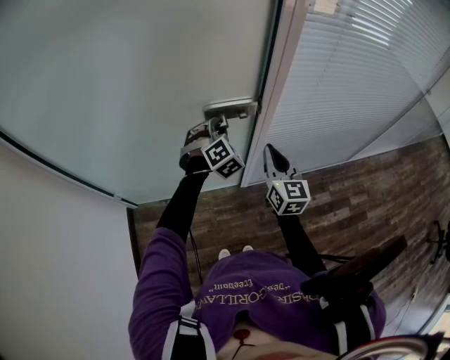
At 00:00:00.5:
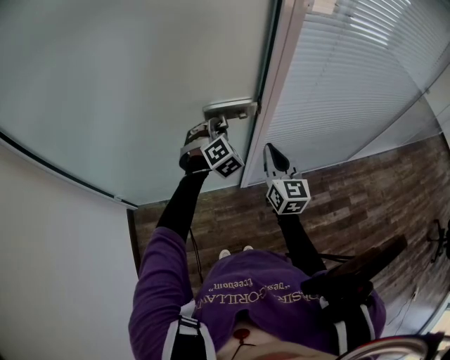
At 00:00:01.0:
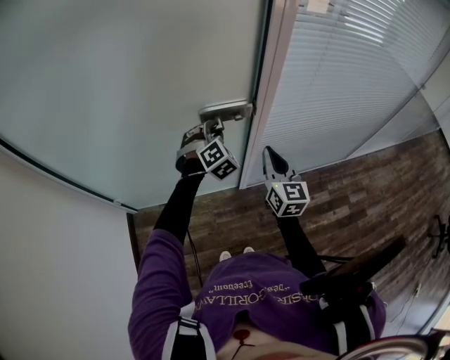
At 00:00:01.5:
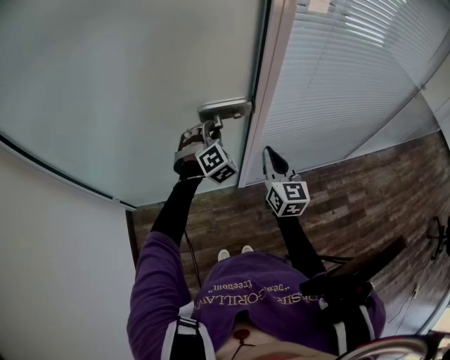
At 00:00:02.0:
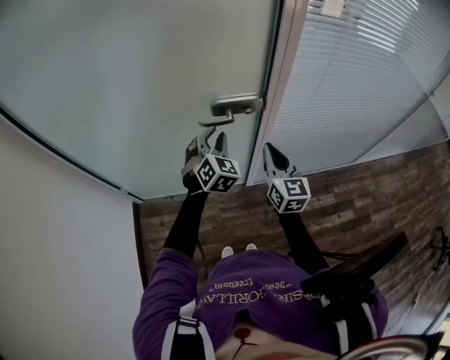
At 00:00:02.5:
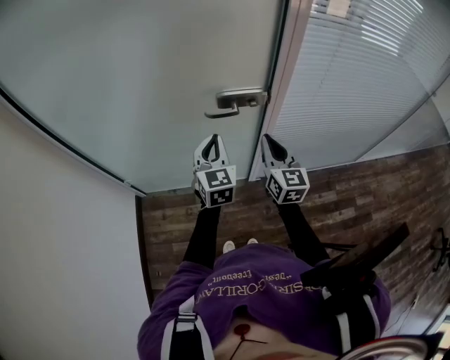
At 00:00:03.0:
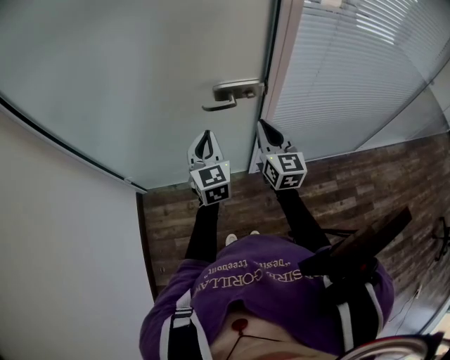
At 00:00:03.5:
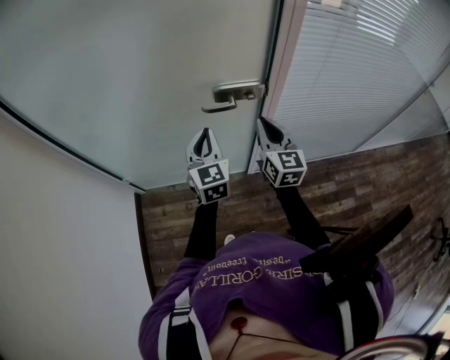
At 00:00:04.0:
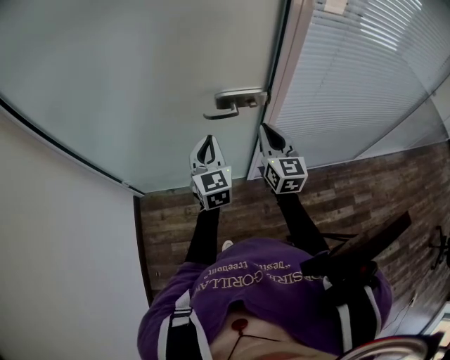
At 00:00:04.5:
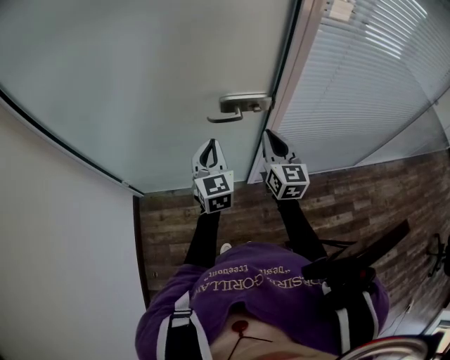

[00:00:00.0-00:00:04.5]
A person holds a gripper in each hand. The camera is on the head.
00:00:00.0 to 00:00:02.0: The left gripper goes some 5 cm backward, and changes its angle by approximately 20 degrees.
00:00:02.0 to 00:00:04.5: The left gripper travels to the left by some 5 cm, rotates about 30 degrees, and closes up.

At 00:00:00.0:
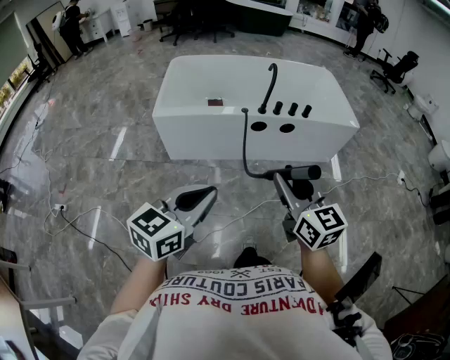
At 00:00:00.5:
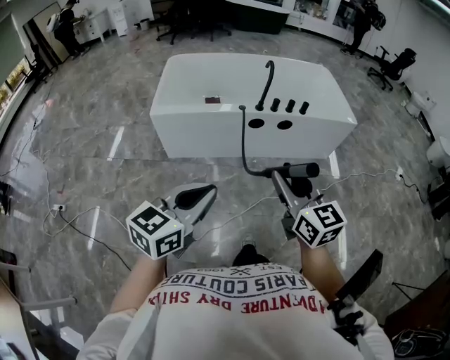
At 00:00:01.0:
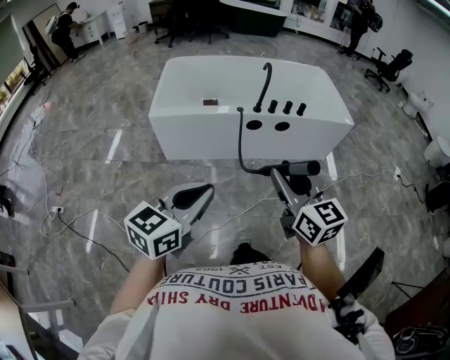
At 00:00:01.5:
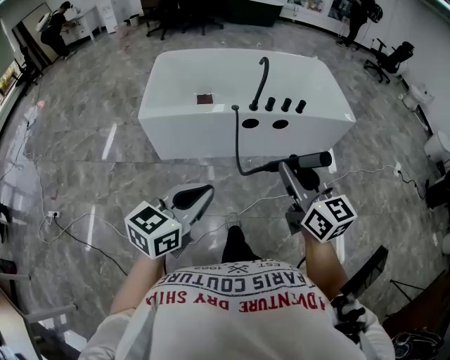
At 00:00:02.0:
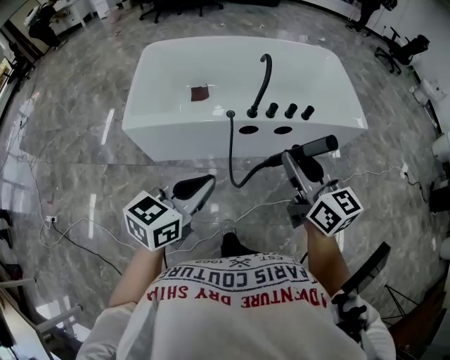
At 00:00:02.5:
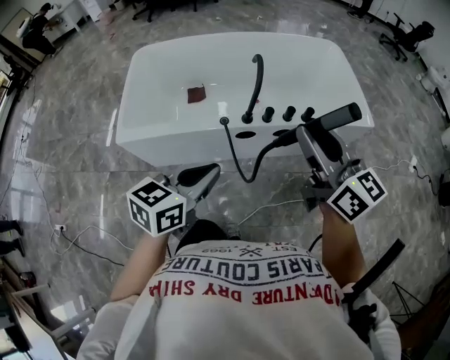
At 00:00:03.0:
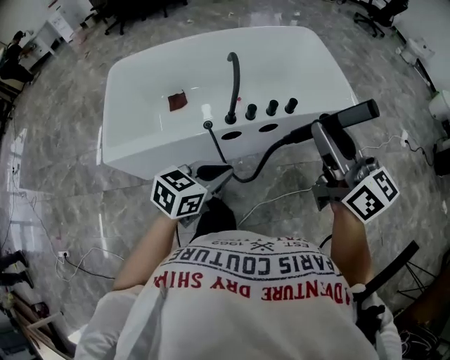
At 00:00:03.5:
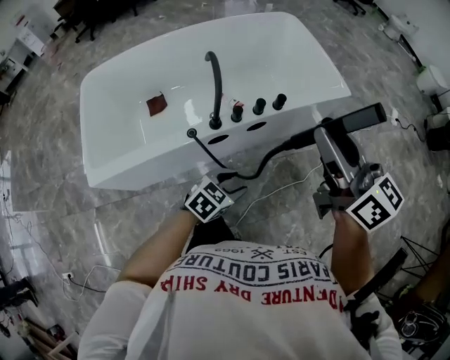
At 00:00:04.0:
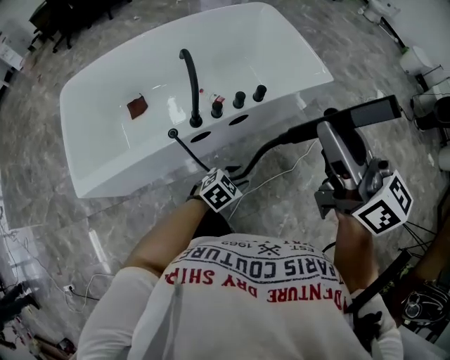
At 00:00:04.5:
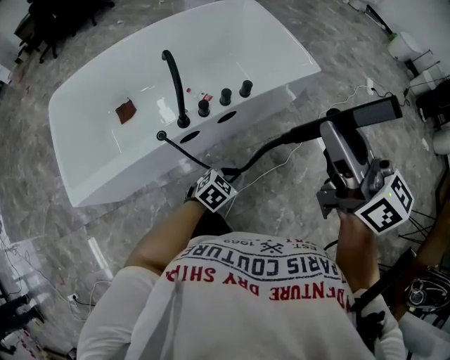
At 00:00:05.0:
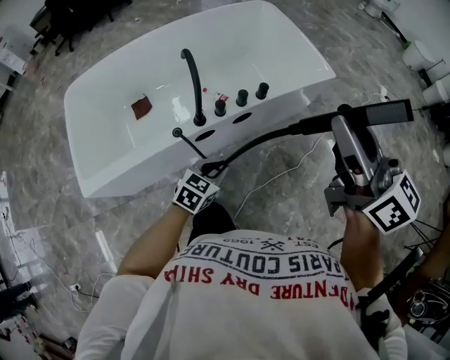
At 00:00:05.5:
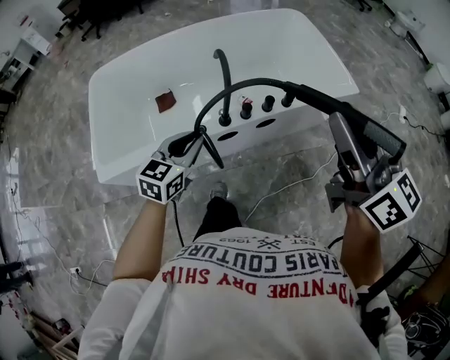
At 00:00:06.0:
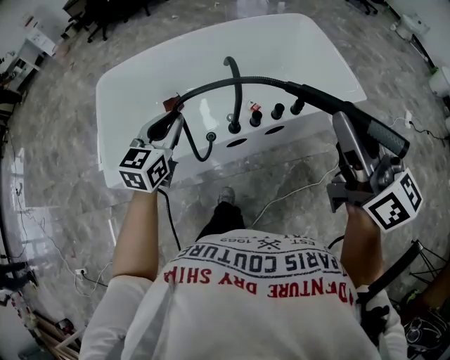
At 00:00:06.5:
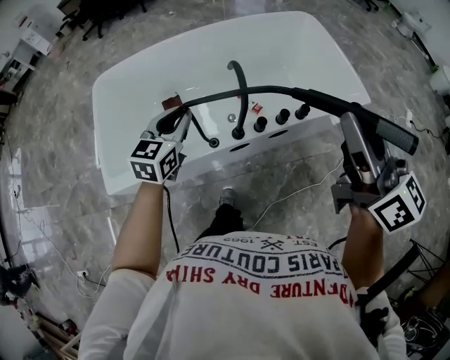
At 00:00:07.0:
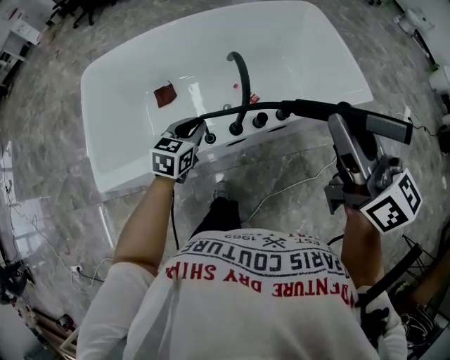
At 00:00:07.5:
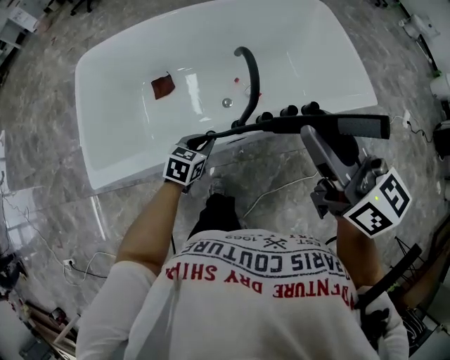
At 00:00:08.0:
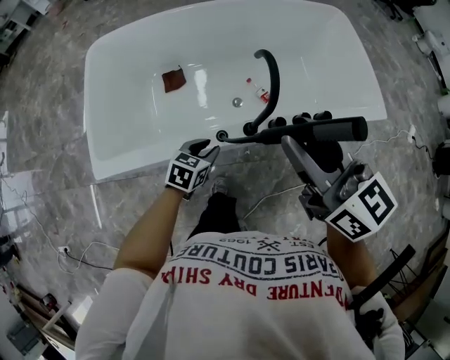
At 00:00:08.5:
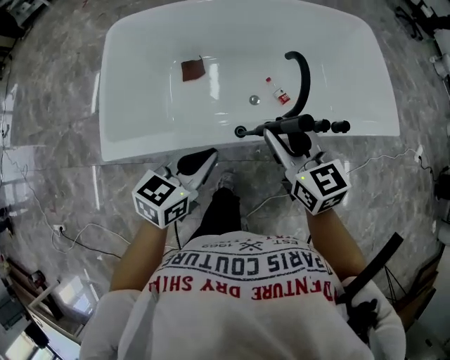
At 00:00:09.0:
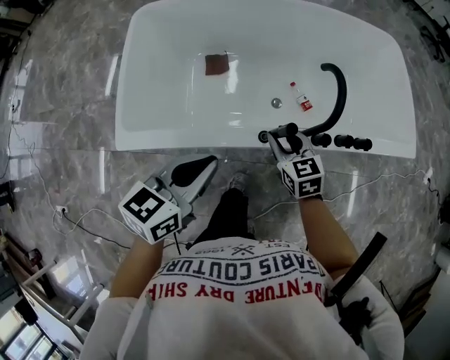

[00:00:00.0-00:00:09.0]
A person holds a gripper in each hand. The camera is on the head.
00:00:00.0 to 00:00:02.0: Both grippers move forward, approximately 25 cm.
00:00:02.0 to 00:00:04.5: The right gripper moves some 20 cm, and turns by approximately 20 degrees. The left gripper is displaced downward by some 30 cm, changes its angle by approximately 50 degrees, and opens, then closes once more.
00:00:04.5 to 00:00:07.0: The right gripper ends up about 20 cm from where it was. Meanwhile the left gripper moves about 35 cm, and changes its angle by approximately 40 degrees.
00:00:07.0 to 00:00:09.0: The left gripper heads backward, to the left and upward, covering about 20 cm, and turns by about 20 degrees, while the right gripper travels downward and to the left by some 40 cm, and tips its fingers downward by about 30 degrees.

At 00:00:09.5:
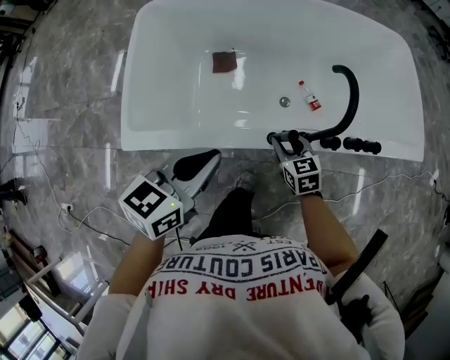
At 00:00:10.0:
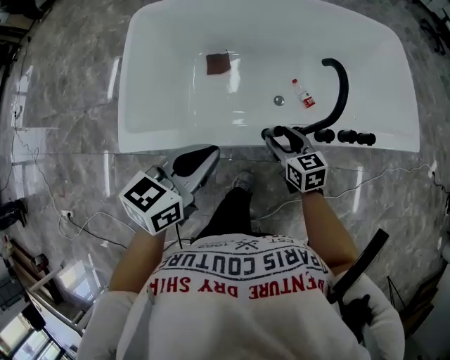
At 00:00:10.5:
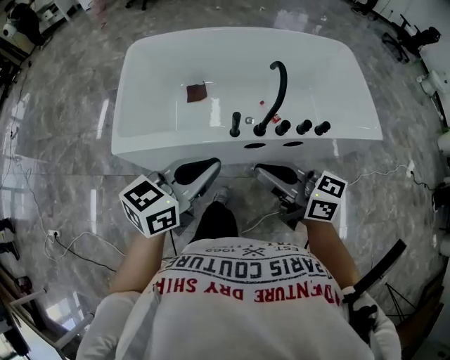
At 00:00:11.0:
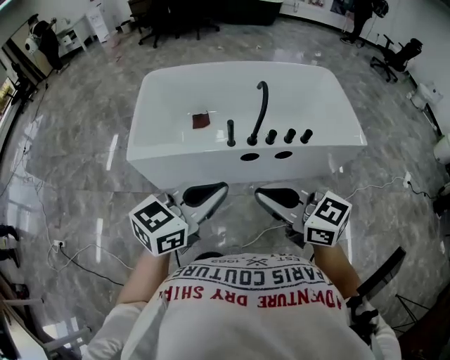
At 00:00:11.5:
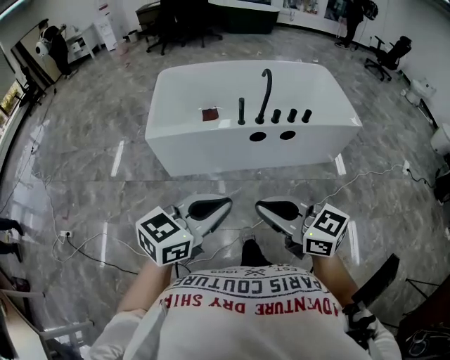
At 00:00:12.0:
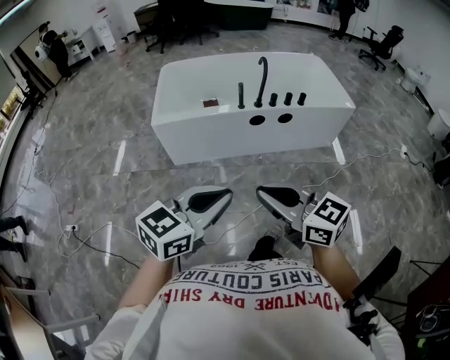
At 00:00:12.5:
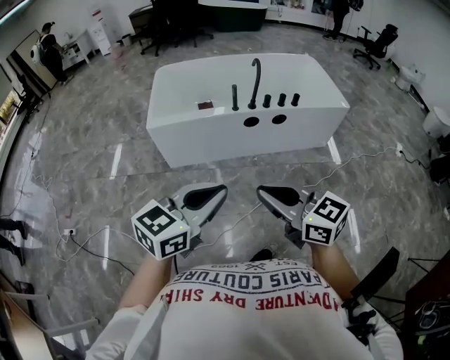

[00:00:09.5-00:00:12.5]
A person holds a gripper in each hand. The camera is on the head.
00:00:09.5 to 00:00:11.0: The right gripper is displaced upward and backward by some 50 cm, angles its fingers upward, by roughly 30 degrees, and closes up. The left gripper goes some 35 cm backward, upward and to the right, and swivels roughly 20 degrees.
00:00:11.0 to 00:00:12.5: Both grippers move backward, some 30 cm.

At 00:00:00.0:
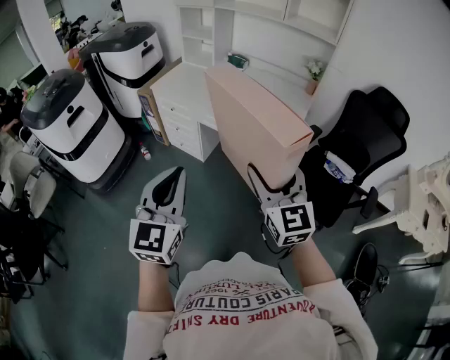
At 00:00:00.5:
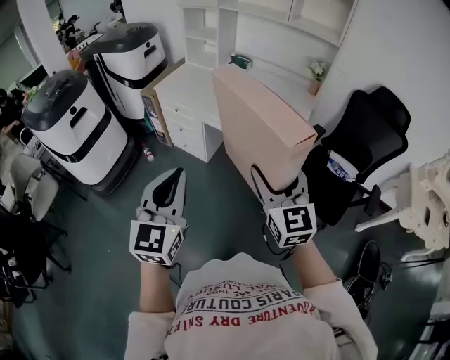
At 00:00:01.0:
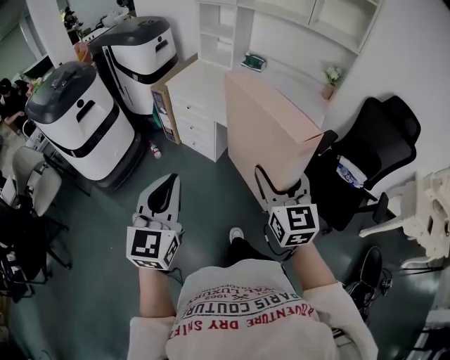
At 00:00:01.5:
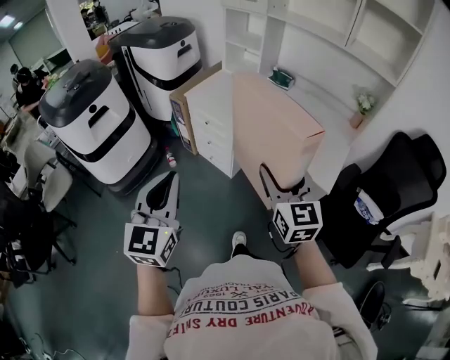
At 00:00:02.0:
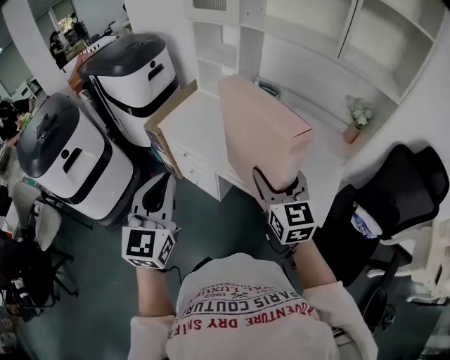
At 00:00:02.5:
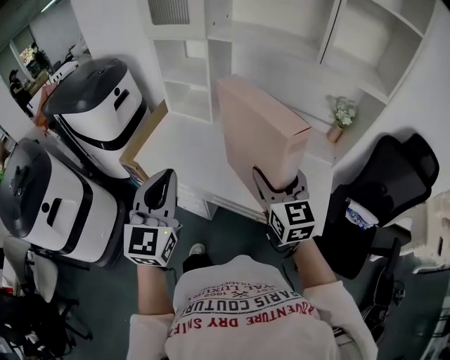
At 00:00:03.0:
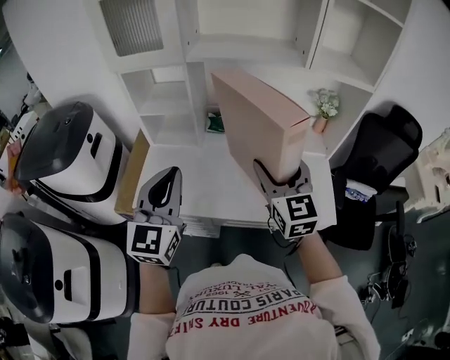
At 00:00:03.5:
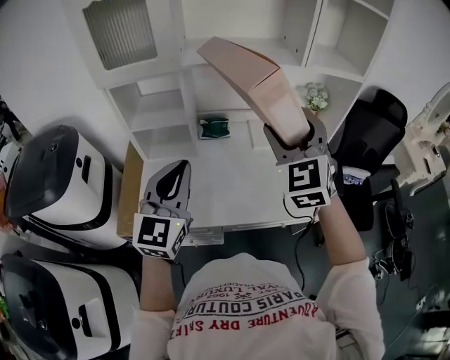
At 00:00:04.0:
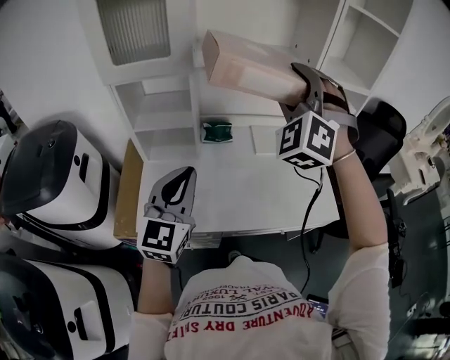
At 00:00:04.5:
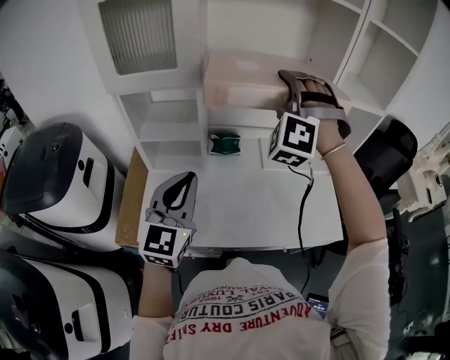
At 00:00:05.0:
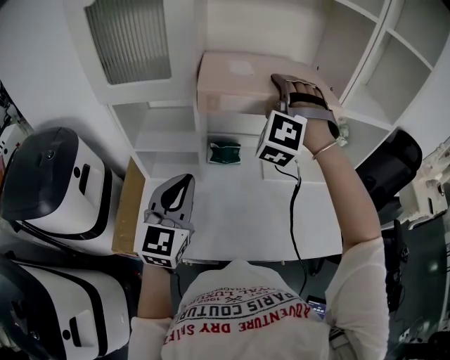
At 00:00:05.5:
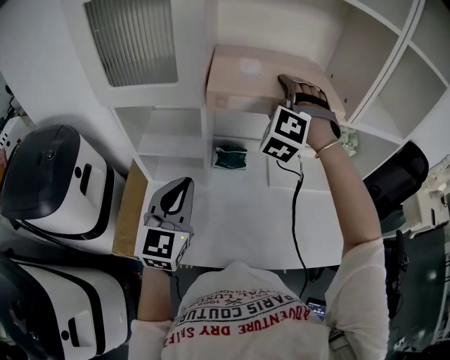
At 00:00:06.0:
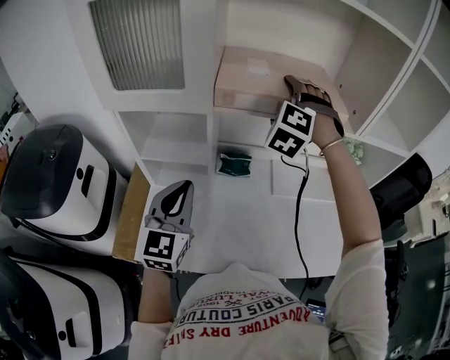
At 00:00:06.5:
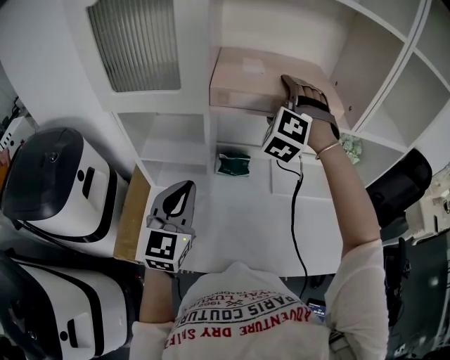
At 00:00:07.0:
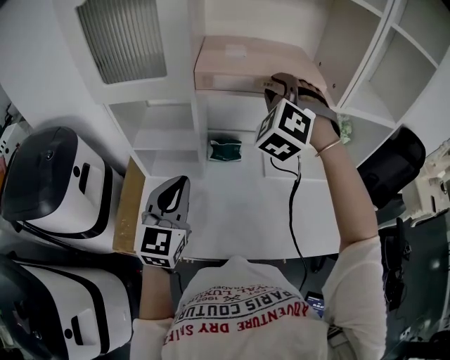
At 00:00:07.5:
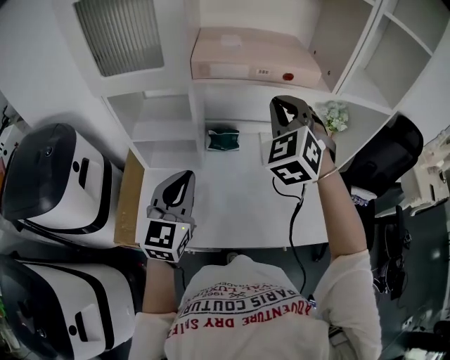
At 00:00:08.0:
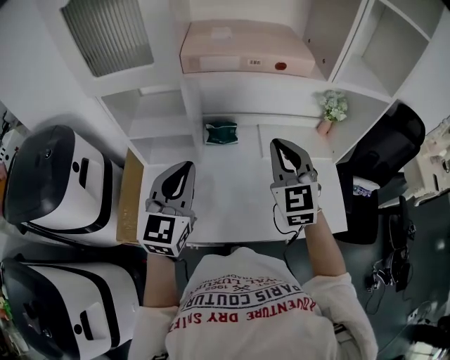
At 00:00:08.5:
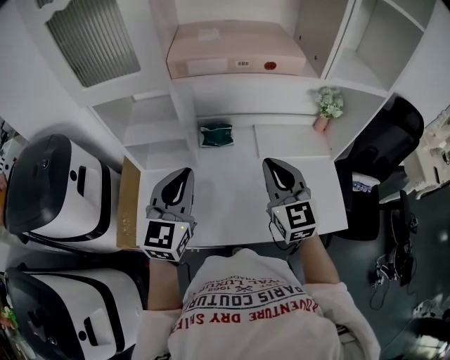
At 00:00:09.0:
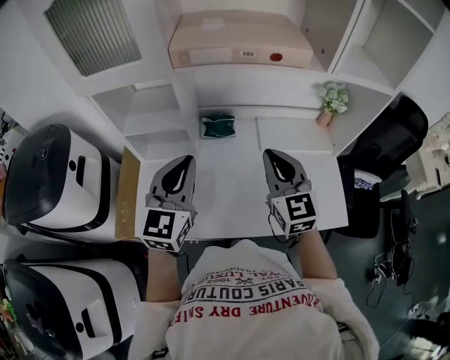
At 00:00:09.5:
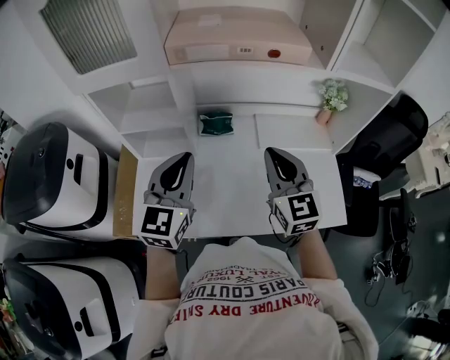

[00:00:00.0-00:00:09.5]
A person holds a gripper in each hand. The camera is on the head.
00:00:00.0 to 00:00:02.0: The two grippers go approximately 35 cm forward.
00:00:02.0 to 00:00:04.0: The left gripper ends up approximately 35 cm from where it was, and rotates some 50 degrees; the right gripper ends up approximately 35 cm from where it was, and turns by some 90 degrees.
00:00:04.0 to 00:00:05.5: The right gripper shifts about 20 cm forward and downward; the left gripper shifts some 10 cm forward.
00:00:05.5 to 00:00:07.5: The right gripper moves backward, roughly 10 cm, swivels some 30 degrees, and closes up.
00:00:07.5 to 00:00:09.5: The right gripper heads downward and backward, covering about 15 cm, and twists approximately 40 degrees clockwise, seen from behind.
